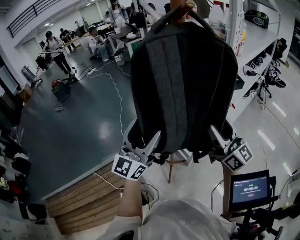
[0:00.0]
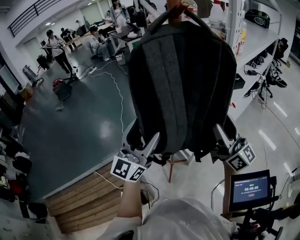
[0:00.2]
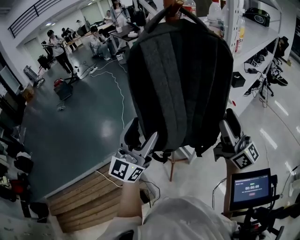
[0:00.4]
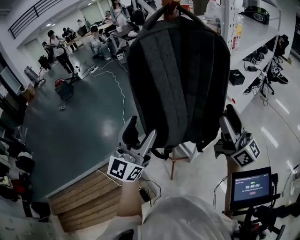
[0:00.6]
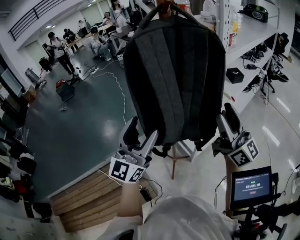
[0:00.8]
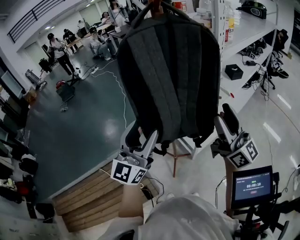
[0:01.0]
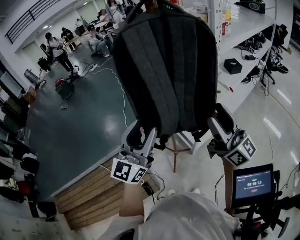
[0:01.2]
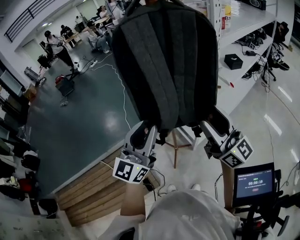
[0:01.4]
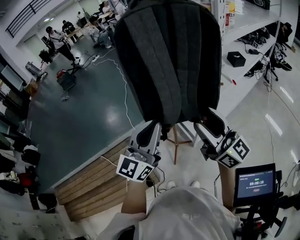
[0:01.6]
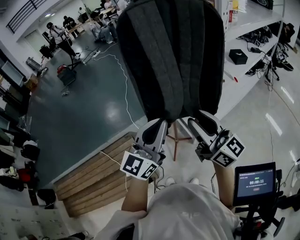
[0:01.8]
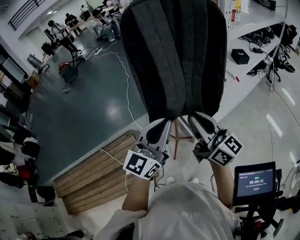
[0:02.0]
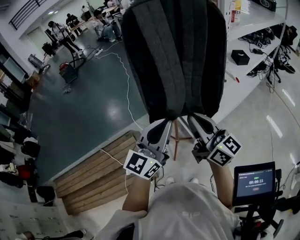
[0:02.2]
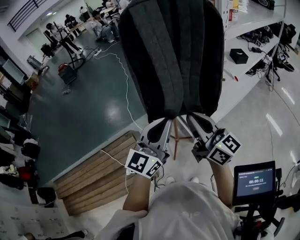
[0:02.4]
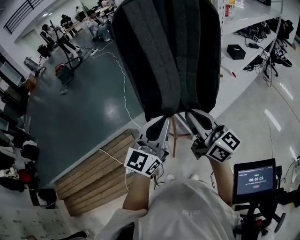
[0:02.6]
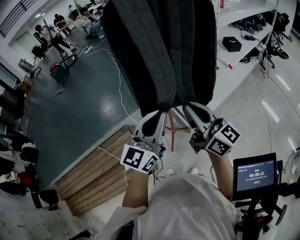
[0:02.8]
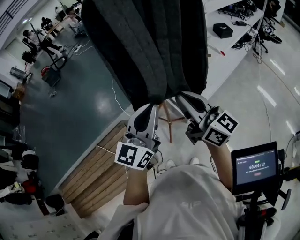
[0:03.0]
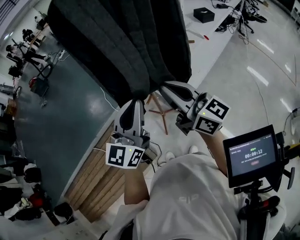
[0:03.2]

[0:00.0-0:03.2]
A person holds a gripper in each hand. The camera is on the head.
0:00.0 to 0:01.6: Both grippers travel together backward, about 10 cm. The left gripper closes.
0:01.6 to 0:03.2: The right gripper closes.

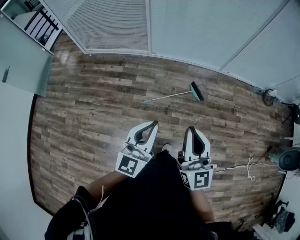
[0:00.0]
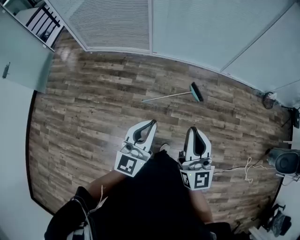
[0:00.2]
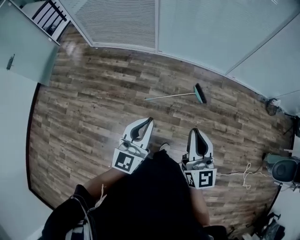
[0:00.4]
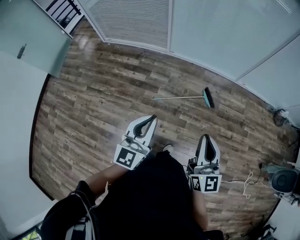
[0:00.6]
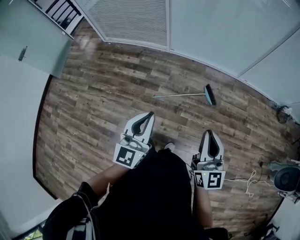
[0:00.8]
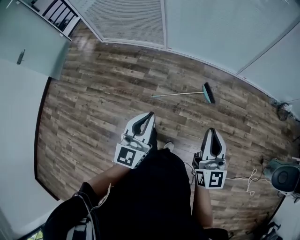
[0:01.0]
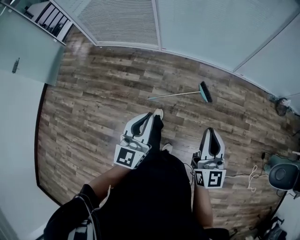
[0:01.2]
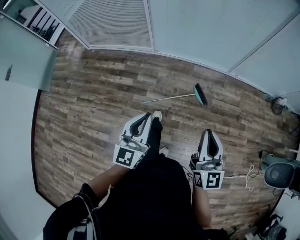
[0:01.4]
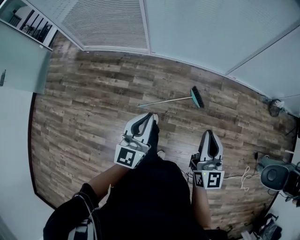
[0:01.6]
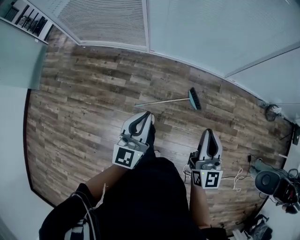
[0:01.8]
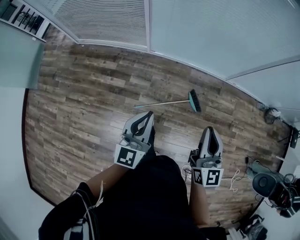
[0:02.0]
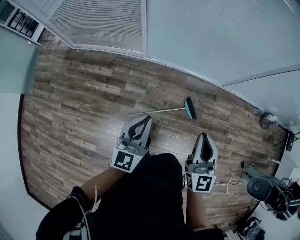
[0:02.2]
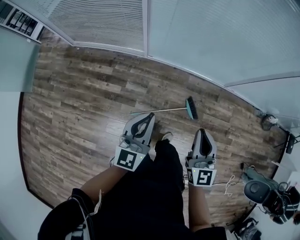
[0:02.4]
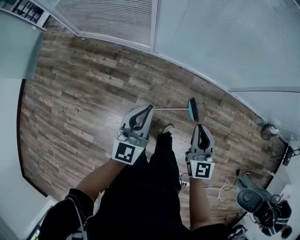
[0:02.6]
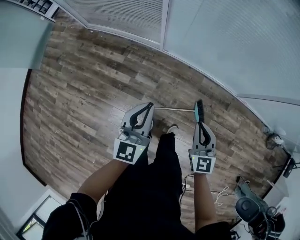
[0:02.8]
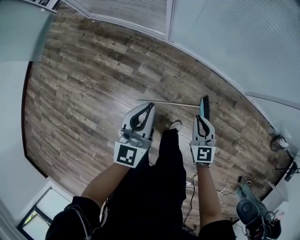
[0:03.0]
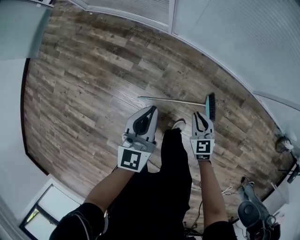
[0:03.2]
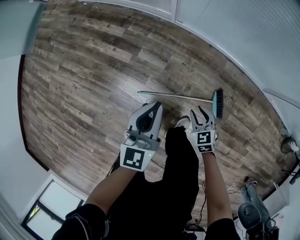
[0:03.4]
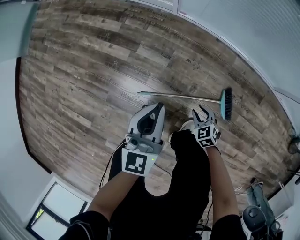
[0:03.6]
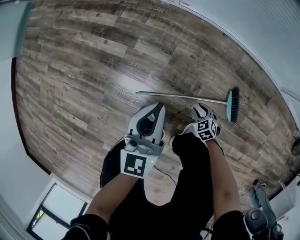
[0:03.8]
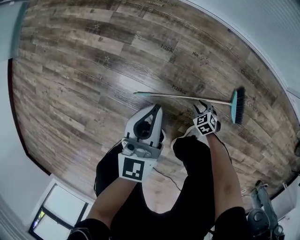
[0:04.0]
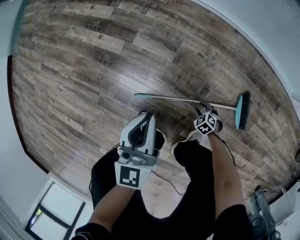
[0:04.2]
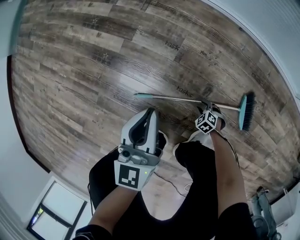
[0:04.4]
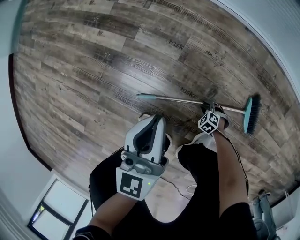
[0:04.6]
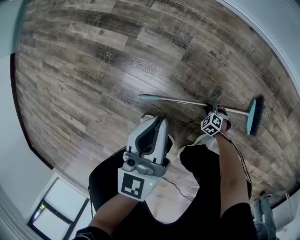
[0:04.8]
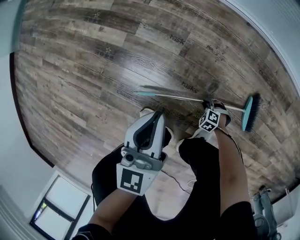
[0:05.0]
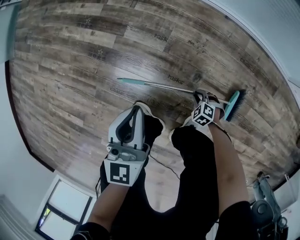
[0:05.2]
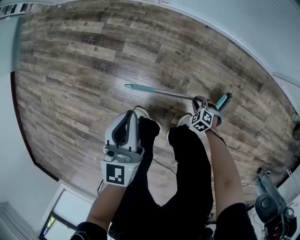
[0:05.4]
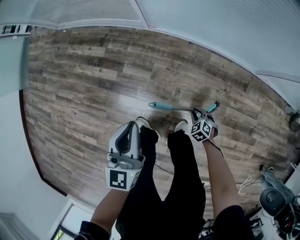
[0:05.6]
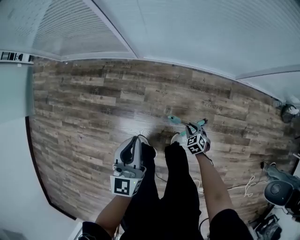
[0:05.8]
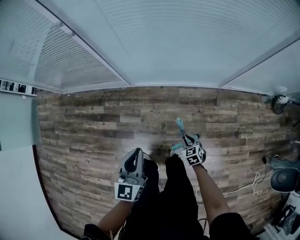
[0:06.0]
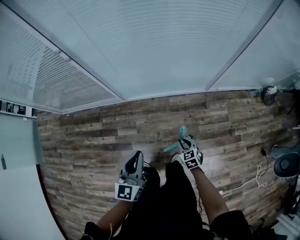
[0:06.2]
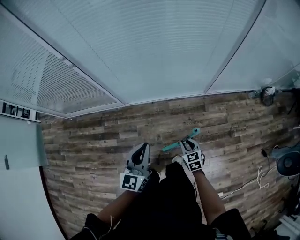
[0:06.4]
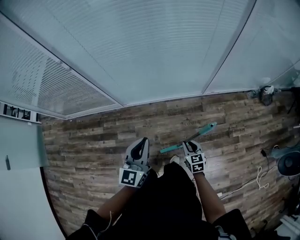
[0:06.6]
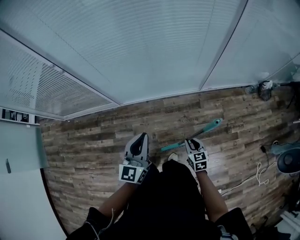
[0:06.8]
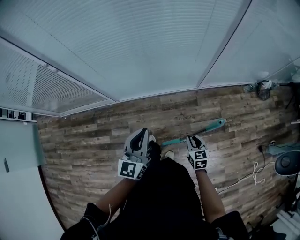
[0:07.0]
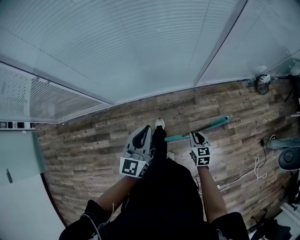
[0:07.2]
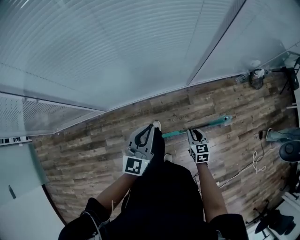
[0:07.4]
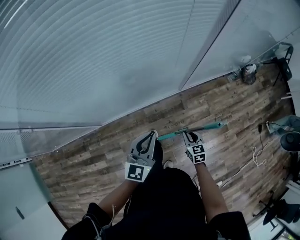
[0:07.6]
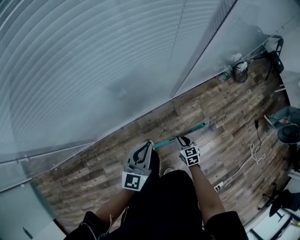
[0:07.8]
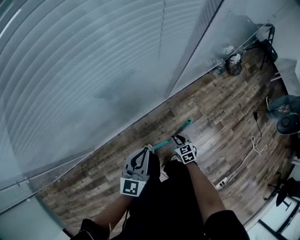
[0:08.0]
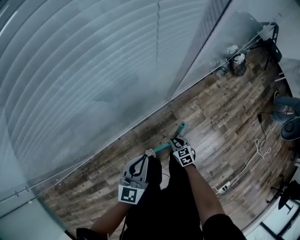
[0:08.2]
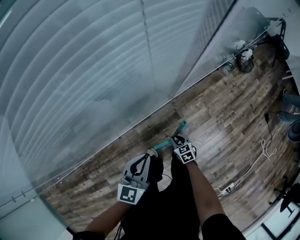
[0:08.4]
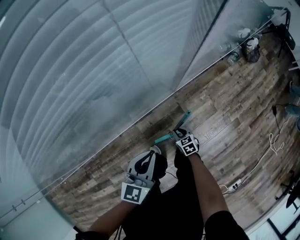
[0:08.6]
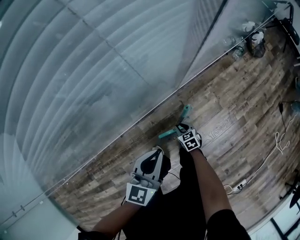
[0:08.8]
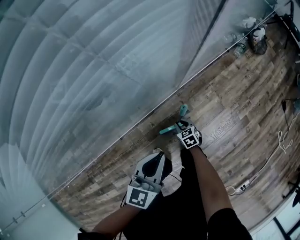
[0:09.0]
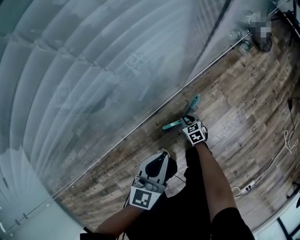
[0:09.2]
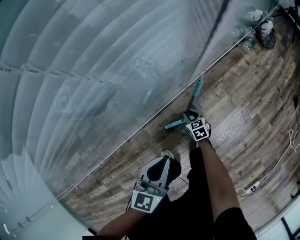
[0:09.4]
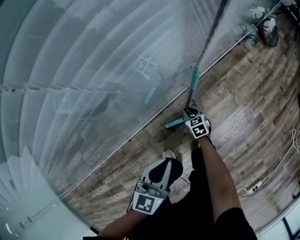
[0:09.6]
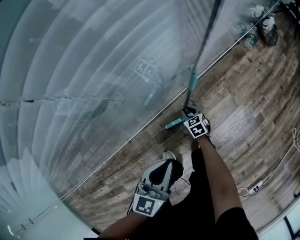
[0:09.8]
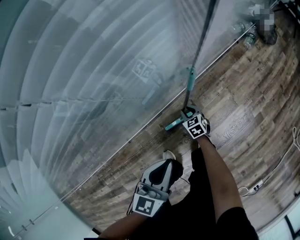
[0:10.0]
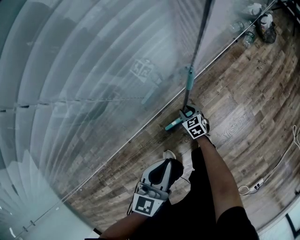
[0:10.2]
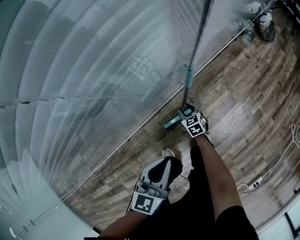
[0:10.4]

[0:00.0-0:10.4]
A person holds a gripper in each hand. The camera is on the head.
0:00.0 to 0:01.4: The right gripper travels to the right, forward and downward by roughly 20 cm. Meanwhile the left gripper goes roughly 15 cm forward.
0:01.4 to 0:03.0: Both grippers move forward and downward, about 40 cm. The right gripper angles its fingers downward, by some 30 degrees.
0:03.0 to 0:04.4: The right gripper heads downward, covering about 70 cm, tips its fingers downward by about 40 degrees, and opens up. The left gripper travels downward by roughly 50 cm.
0:04.4 to 0:06.0: Both grippers travel together upward, some 50 cm. The right gripper changes its angle by roughly 60 degrees, while the left gripper swivels approximately 30 degrees.
0:06.0 to 0:07.4: The right gripper changes place by roughly 30 cm, and swivels approximately 40 degrees. Meanwhile the left gripper moves some 30 cm, and swivels approximately 30 degrees.
0:07.4 to 0:09.0: The right gripper goes some 50 cm downward and forward. The left gripper shifts roughly 35 cm downward, forward and to the right, and changes its angle by approximately 30 degrees.
0:09.0 to 0:10.4: The left gripper is displaced downward by about 5 cm. Meanwhile the right gripper shifts approximately 10 cm forward.

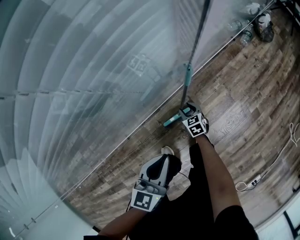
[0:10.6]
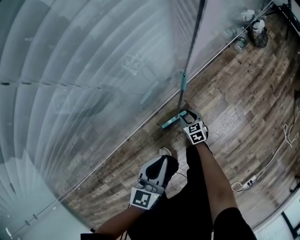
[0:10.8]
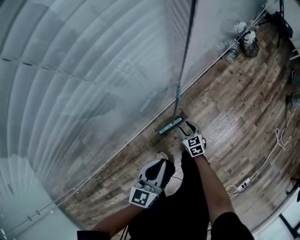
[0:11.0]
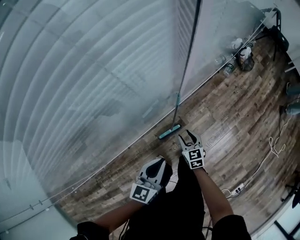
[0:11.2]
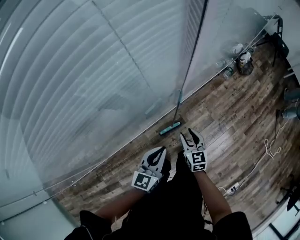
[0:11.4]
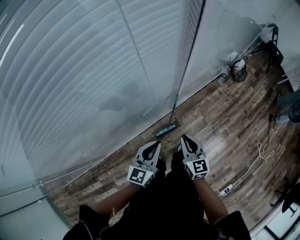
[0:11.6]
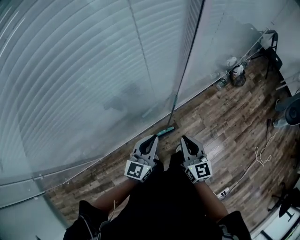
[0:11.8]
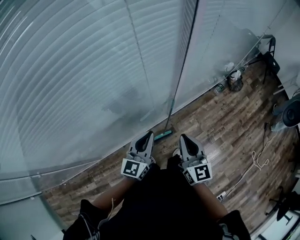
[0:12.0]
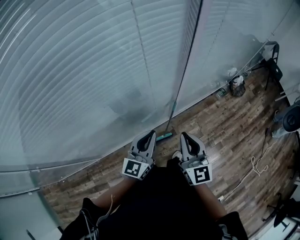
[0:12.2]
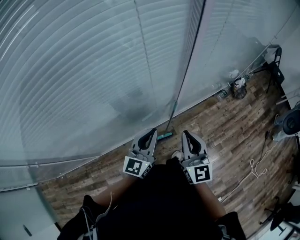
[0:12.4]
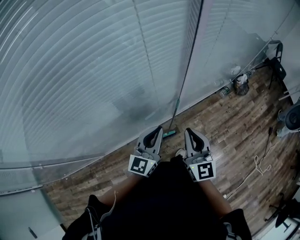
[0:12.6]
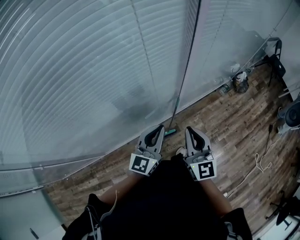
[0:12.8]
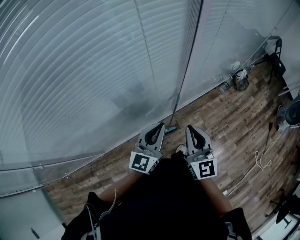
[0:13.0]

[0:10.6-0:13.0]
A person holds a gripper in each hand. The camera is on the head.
0:10.6 to 0:11.8: The left gripper is displaced upward by approximately 35 cm. Meanwhile the right gripper goes some 60 cm upward, points its fingers approximately 40 degrees further upward, and closes.
0:11.8 to 0:13.0: The left gripper travels upward by roughly 5 cm. The right gripper heads upward, covering approximately 10 cm.

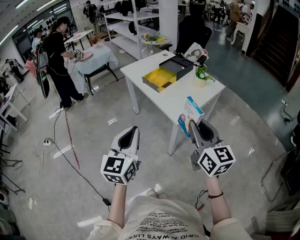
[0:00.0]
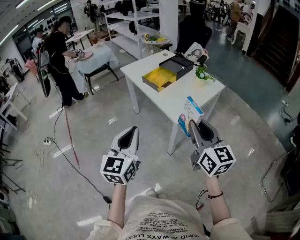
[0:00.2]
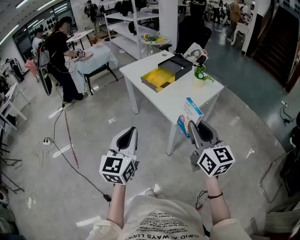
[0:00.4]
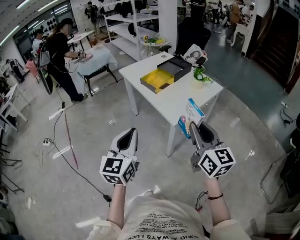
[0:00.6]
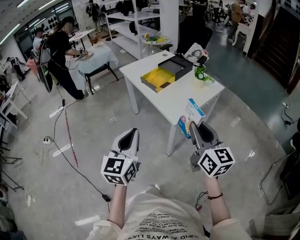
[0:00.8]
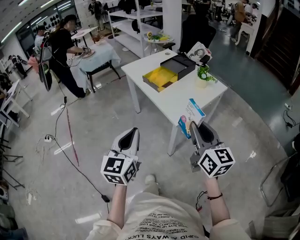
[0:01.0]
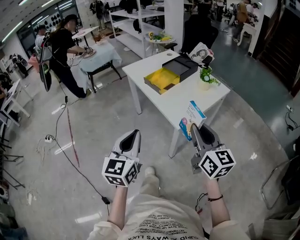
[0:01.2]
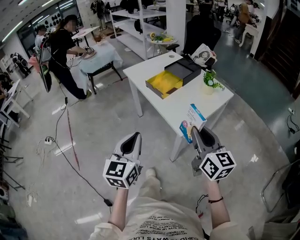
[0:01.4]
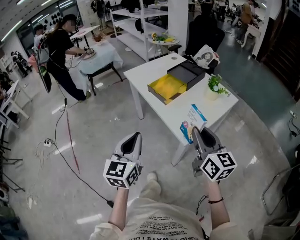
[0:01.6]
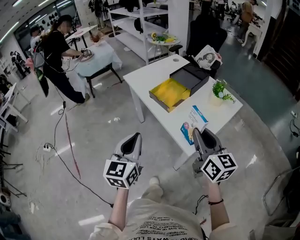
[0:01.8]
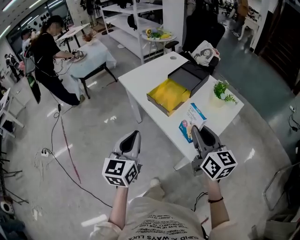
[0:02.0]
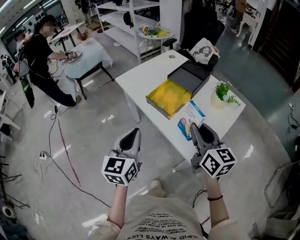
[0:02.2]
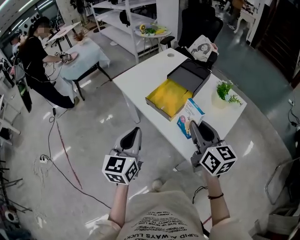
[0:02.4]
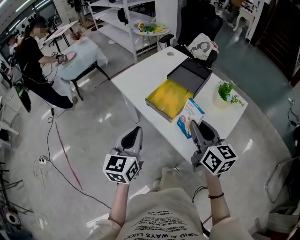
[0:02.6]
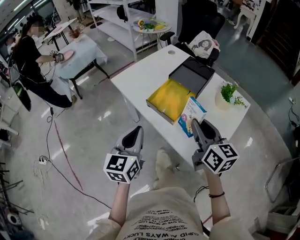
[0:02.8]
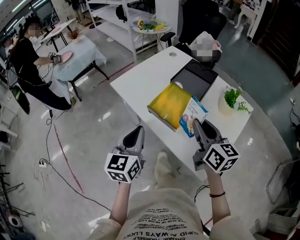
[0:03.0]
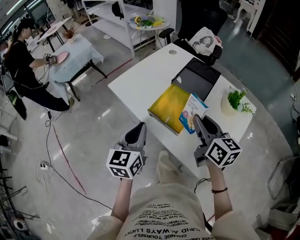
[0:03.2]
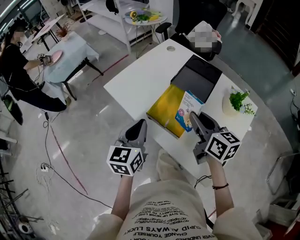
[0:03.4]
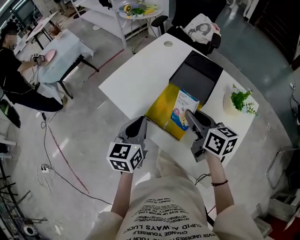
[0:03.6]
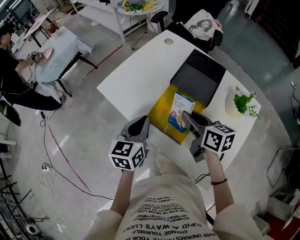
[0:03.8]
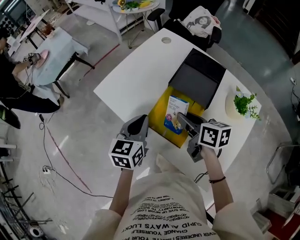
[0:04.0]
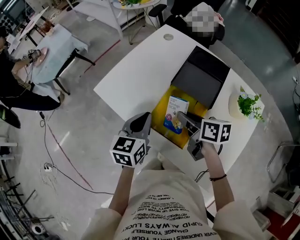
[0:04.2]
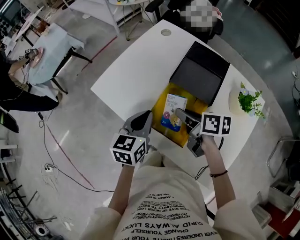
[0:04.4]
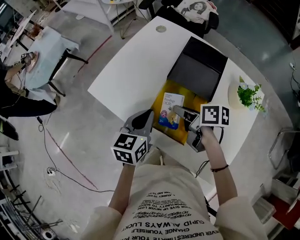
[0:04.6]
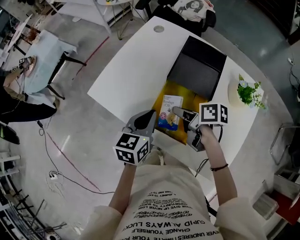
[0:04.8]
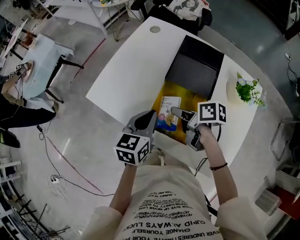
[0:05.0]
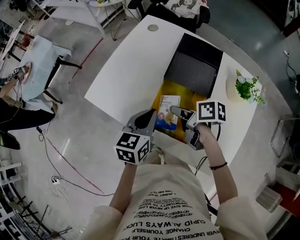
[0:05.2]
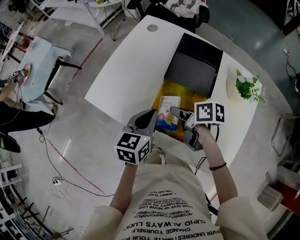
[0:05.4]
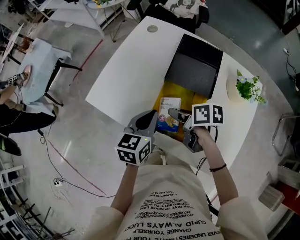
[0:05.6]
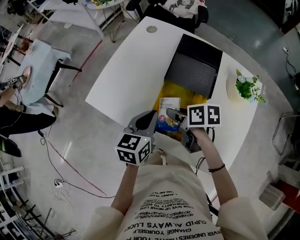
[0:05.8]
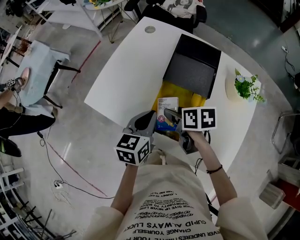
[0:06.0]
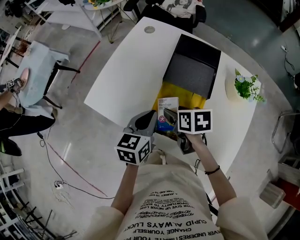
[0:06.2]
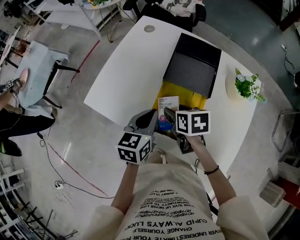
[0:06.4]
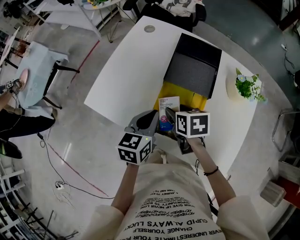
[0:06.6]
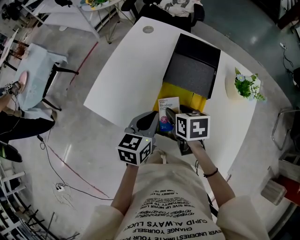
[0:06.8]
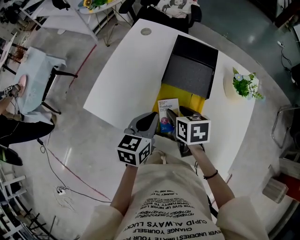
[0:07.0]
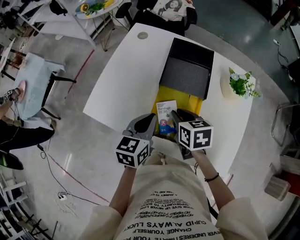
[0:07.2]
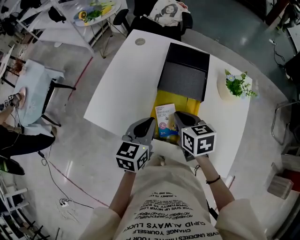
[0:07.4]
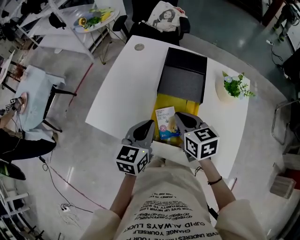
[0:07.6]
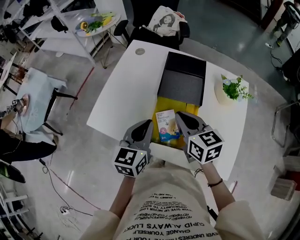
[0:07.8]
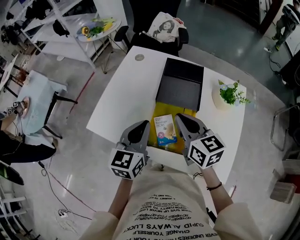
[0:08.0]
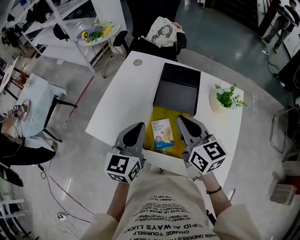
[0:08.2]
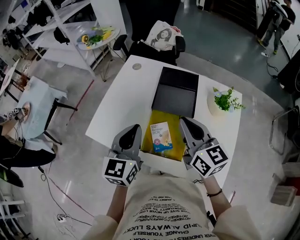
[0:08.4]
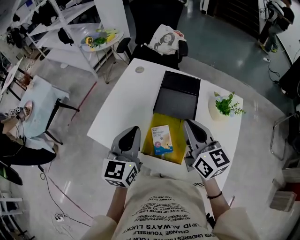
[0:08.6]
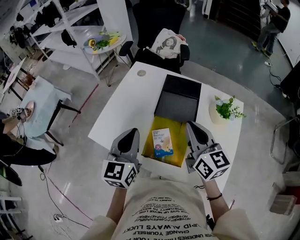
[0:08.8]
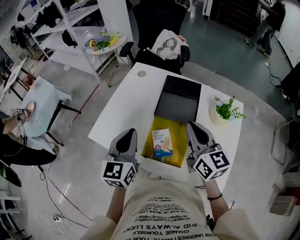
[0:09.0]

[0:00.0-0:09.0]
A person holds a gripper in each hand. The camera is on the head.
0:00.0 to 0:01.6: The grippers both shift forward by about 15 cm.
0:01.6 to 0:03.0: Both grippers move forward, about 30 cm.
0:03.0 to 0:04.4: Both grippers move forward and downward, roughly 20 cm. The right gripper turns by approximately 40 degrees, while the left gripper swivels some 20 degrees.
0:04.4 to 0:06.0: The right gripper opens.
0:06.0 to 0:07.6: The right gripper heads upward, covering roughly 5 cm, swivels approximately 30 degrees, and closes up.
0:07.6 to 0:09.0: The right gripper is displaced upward and to the right by approximately 15 cm, and rotates approximately 30 degrees; the left gripper heads upward, covering some 10 cm, and turns by approximately 20 degrees.
